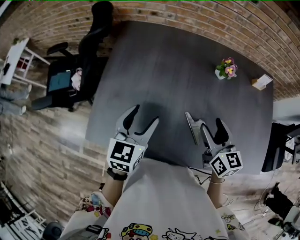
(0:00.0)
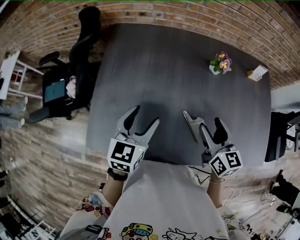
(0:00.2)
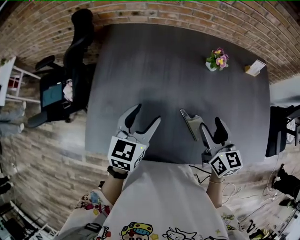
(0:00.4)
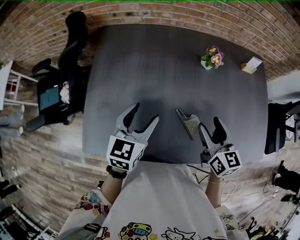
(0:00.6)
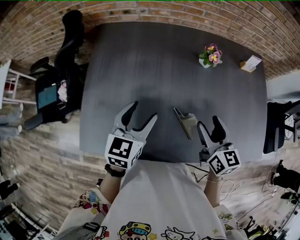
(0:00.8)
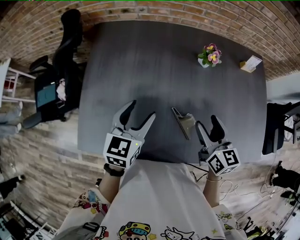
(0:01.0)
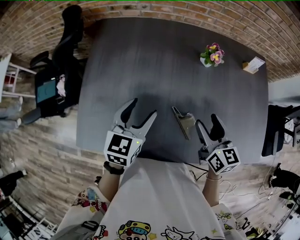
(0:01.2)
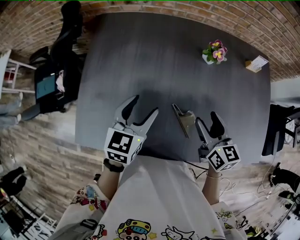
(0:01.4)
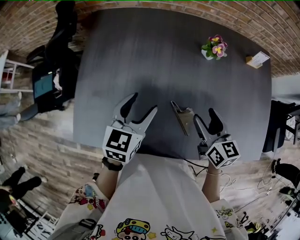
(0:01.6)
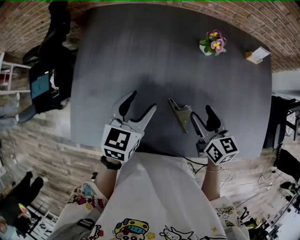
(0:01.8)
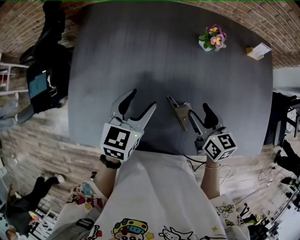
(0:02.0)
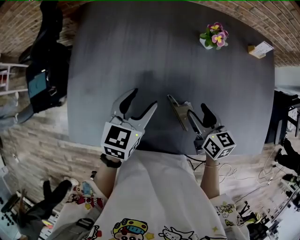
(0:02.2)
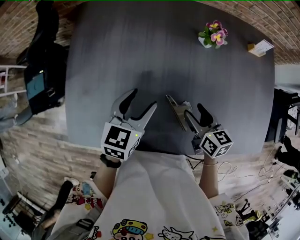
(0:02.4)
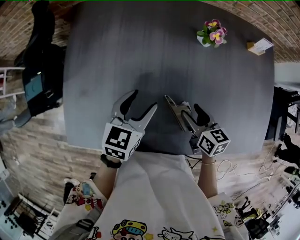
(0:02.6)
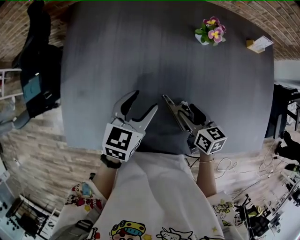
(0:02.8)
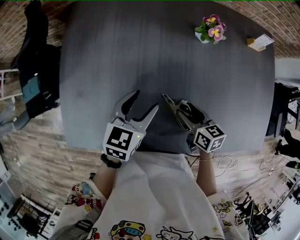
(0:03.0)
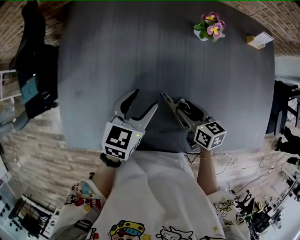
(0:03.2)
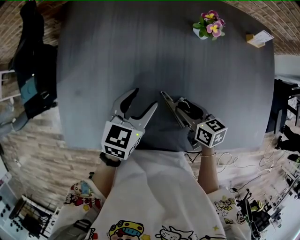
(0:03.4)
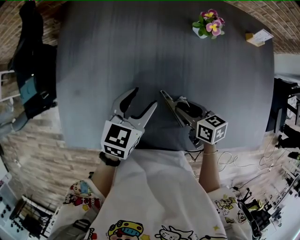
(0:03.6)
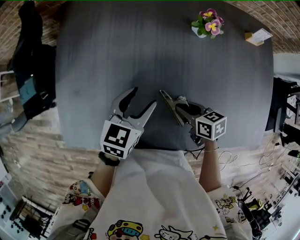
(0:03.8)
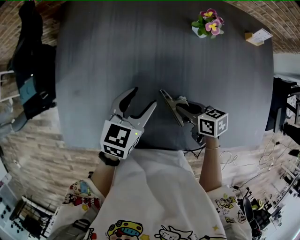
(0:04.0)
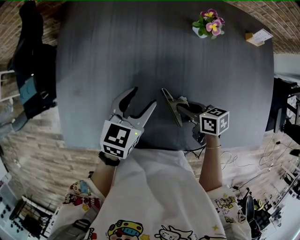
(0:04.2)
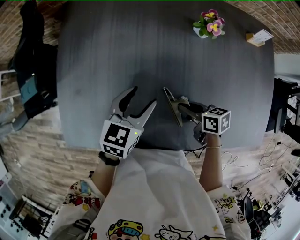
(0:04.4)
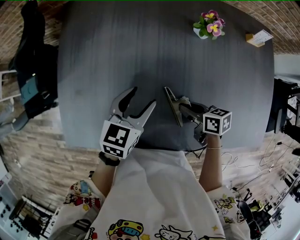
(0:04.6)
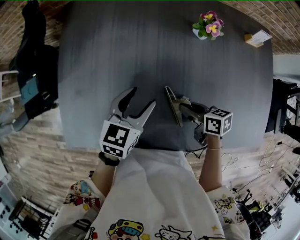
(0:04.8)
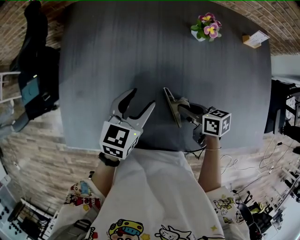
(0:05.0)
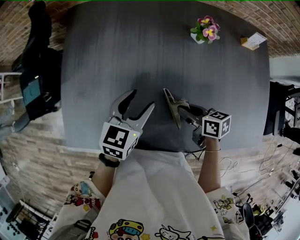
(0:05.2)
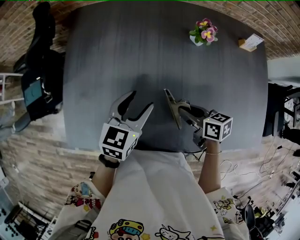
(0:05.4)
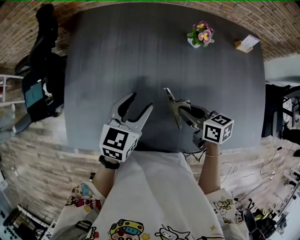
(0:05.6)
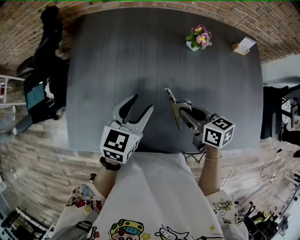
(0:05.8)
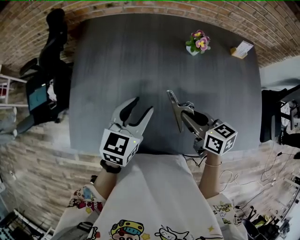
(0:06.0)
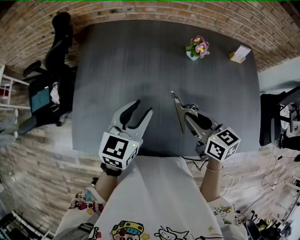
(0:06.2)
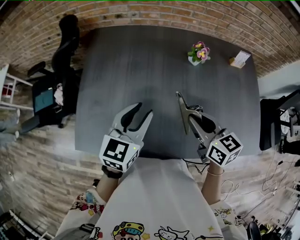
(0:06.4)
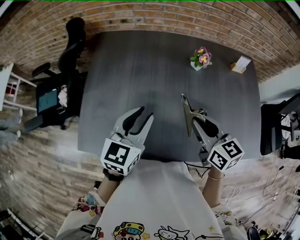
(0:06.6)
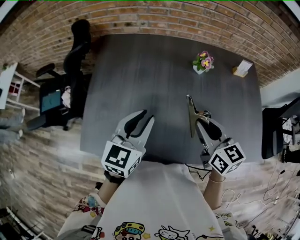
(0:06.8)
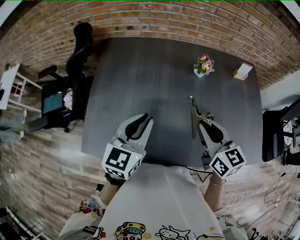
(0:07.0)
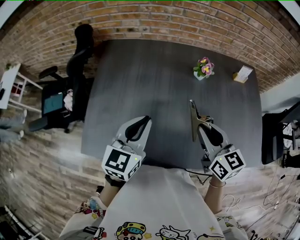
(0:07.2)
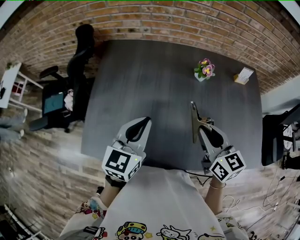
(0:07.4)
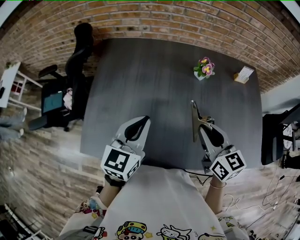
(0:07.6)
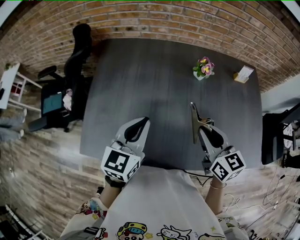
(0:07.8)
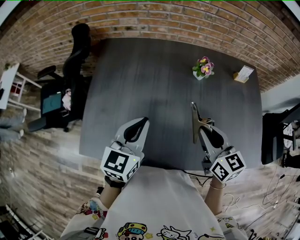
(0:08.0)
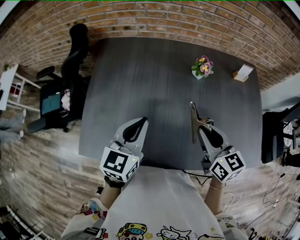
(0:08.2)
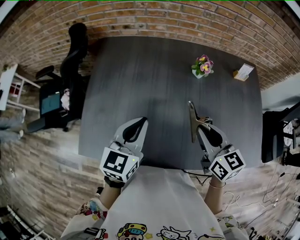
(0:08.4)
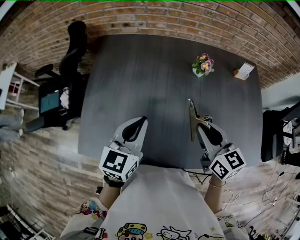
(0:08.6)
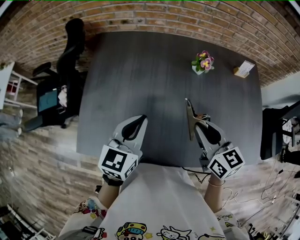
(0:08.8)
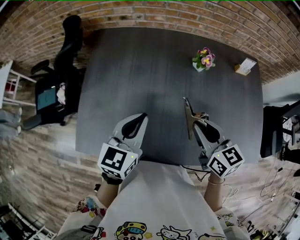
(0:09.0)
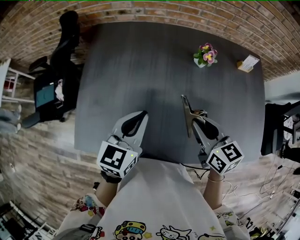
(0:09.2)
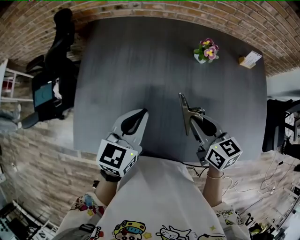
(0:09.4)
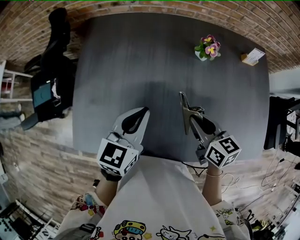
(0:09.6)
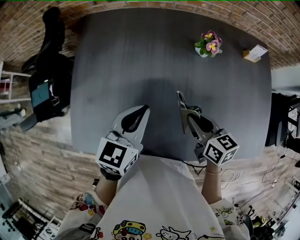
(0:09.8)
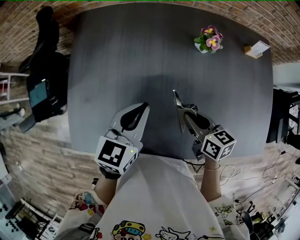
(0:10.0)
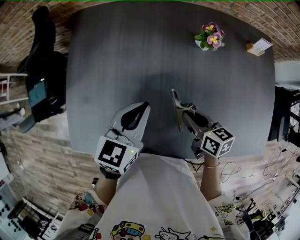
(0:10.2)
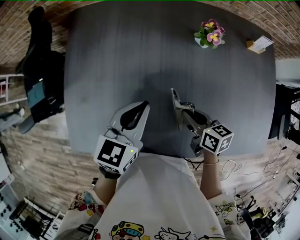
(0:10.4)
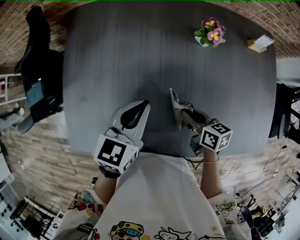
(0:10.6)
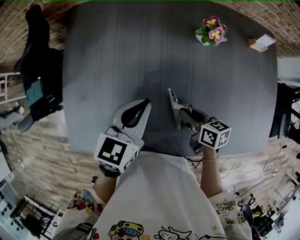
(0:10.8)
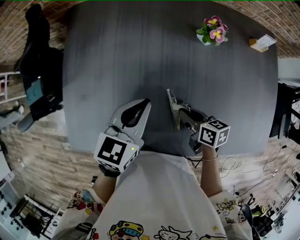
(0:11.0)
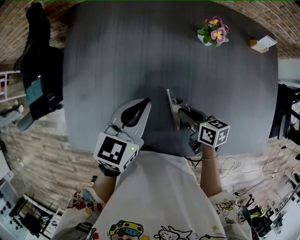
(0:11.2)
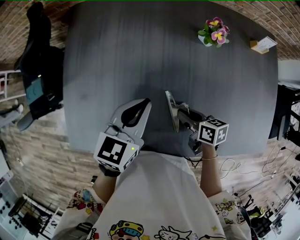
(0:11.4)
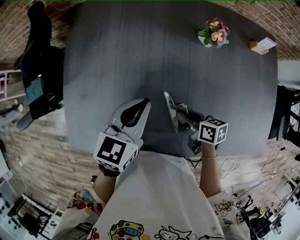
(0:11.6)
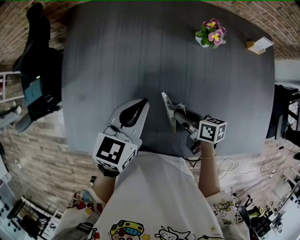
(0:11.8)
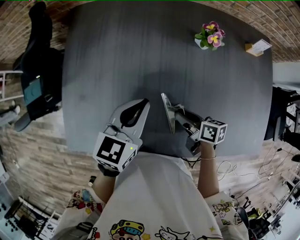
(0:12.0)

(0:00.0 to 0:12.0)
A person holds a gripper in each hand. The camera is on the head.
0:00.0 - 0:01.6: The right gripper ends up roughly 5 cm from where it was. The left gripper heads to the right, covering approximately 5 cm.
0:01.6 - 0:03.0: The right gripper travels downward by approximately 10 cm, and rotates approximately 20 degrees. The left gripper goes about 5 cm downward.
0:03.0 - 0:04.4: The right gripper changes its angle by approximately 20 degrees, and closes its fingers.
0:04.4 - 0:06.0: The left gripper is displaced upward by about 5 cm. Meanwhile the right gripper goes roughly 10 cm upward, and swivels roughly 20 degrees.
0:06.0 - 0:07.6: The grippers both shift upward by about 10 cm. The right gripper rotates approximately 20 degrees. Meanwhile the left gripper closes up.
0:07.6 - 0:09.0: The grippers make only small movements.
0:09.0 - 0:10.4: The right gripper travels downward by some 15 cm, and turns by roughly 30 degrees. The left gripper is displaced downward by about 5 cm.
0:10.4 - 0:12.0: The grippers stay close to where they were, moving slightly.

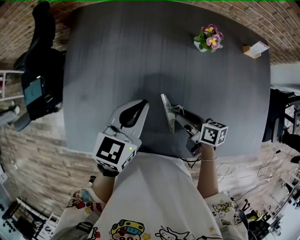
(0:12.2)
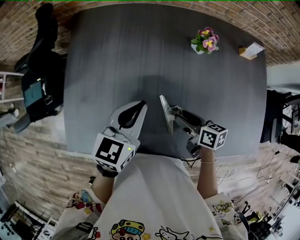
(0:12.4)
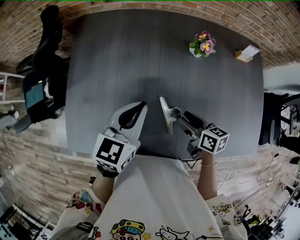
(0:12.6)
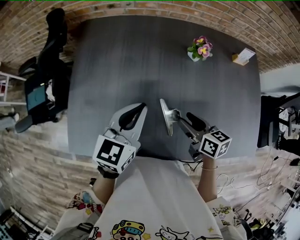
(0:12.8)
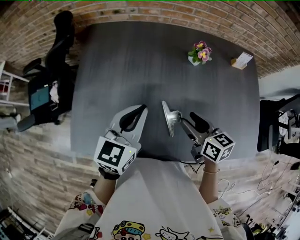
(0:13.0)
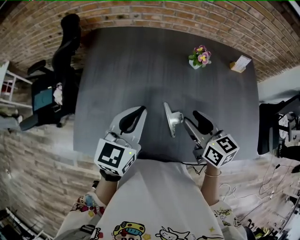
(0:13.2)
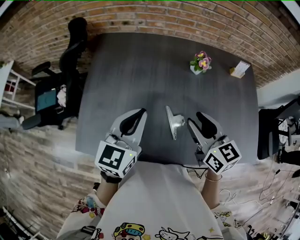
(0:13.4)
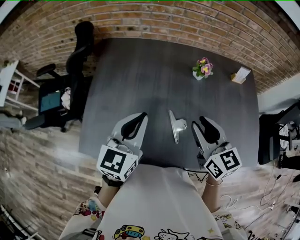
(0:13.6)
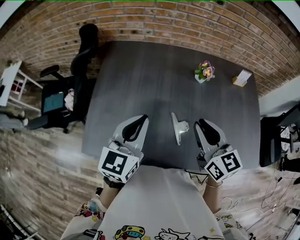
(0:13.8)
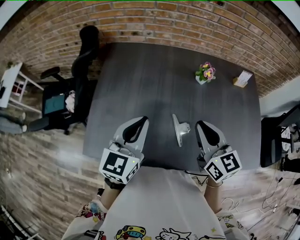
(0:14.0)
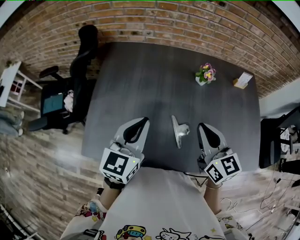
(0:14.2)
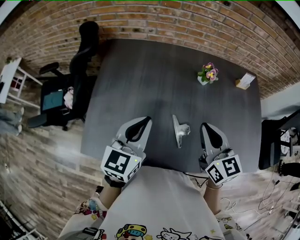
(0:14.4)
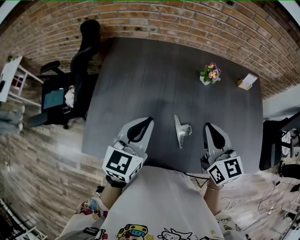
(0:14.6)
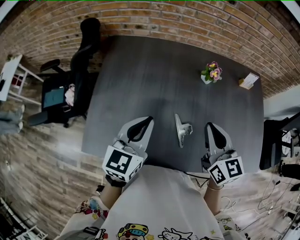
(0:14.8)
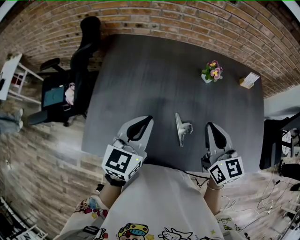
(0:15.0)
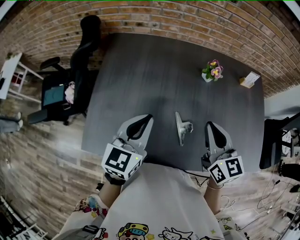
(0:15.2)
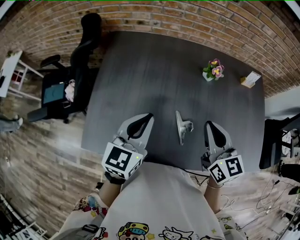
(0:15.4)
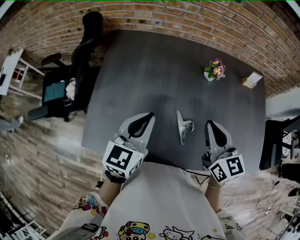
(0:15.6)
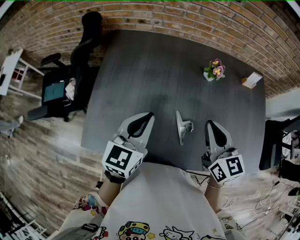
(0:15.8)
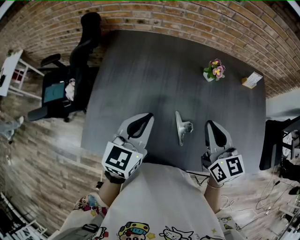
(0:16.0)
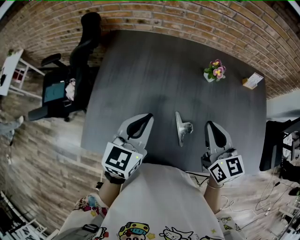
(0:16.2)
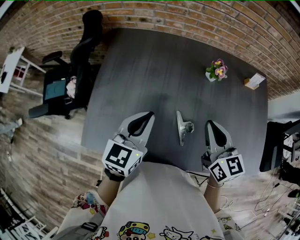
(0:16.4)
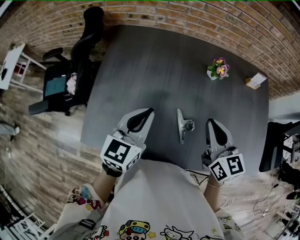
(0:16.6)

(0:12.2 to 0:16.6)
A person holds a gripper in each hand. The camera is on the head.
0:12.2 - 0:13.6: The left gripper moves upward, backward and to the left, roughly 15 cm; the right gripper is displaced upward by roughly 25 cm, and twists about 50 degrees counterclockwise, seen from behind.
0:13.6 - 0:15.2: The right gripper closes.
0:15.2 - 0:16.6: The grippers make only small movements.

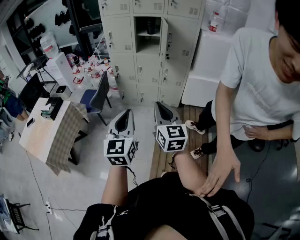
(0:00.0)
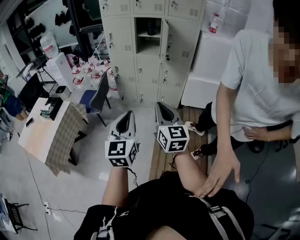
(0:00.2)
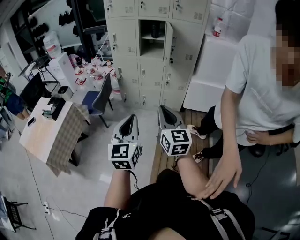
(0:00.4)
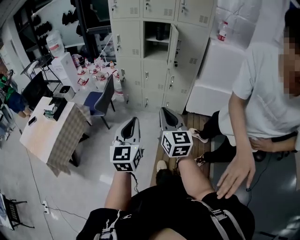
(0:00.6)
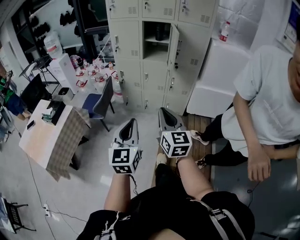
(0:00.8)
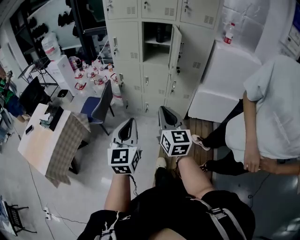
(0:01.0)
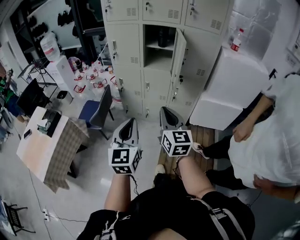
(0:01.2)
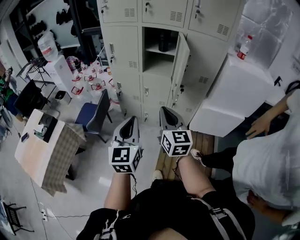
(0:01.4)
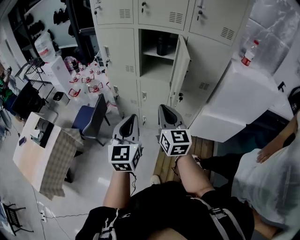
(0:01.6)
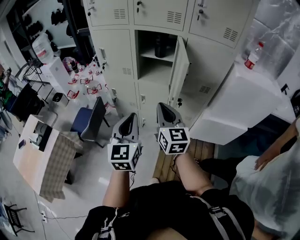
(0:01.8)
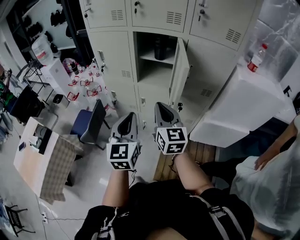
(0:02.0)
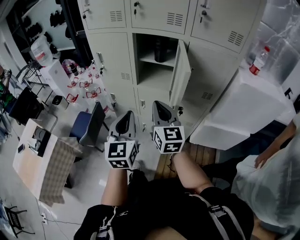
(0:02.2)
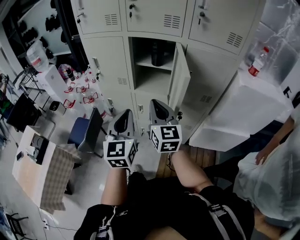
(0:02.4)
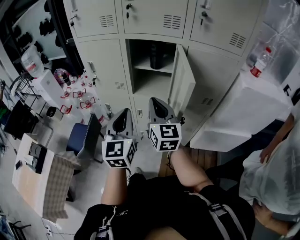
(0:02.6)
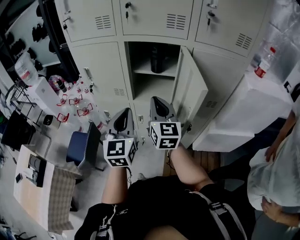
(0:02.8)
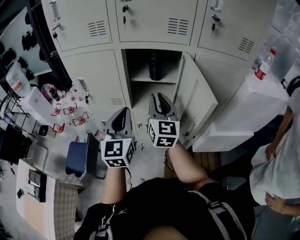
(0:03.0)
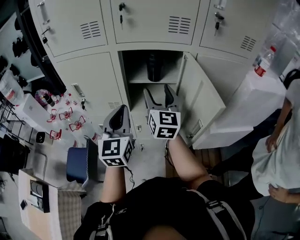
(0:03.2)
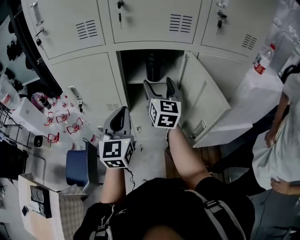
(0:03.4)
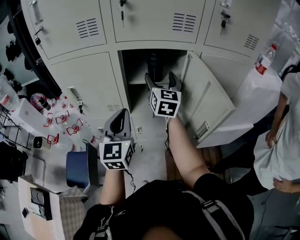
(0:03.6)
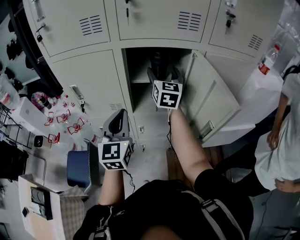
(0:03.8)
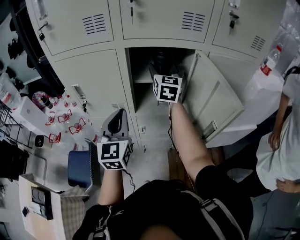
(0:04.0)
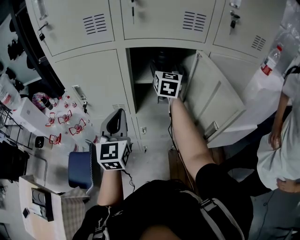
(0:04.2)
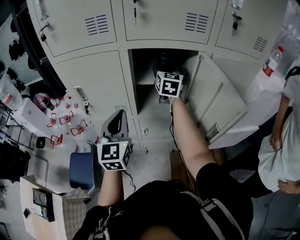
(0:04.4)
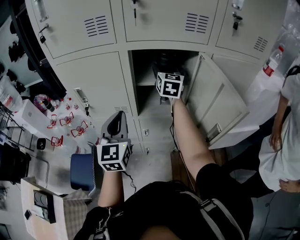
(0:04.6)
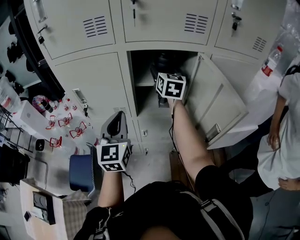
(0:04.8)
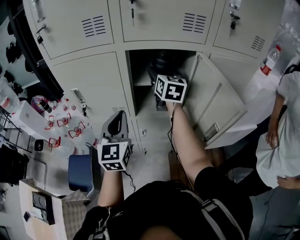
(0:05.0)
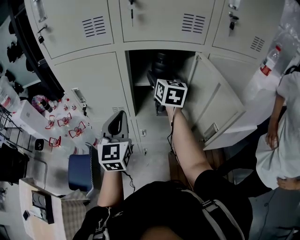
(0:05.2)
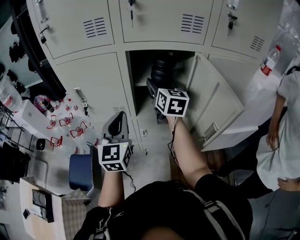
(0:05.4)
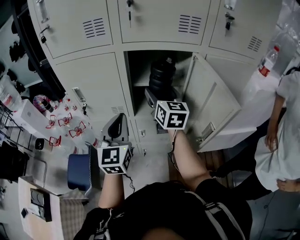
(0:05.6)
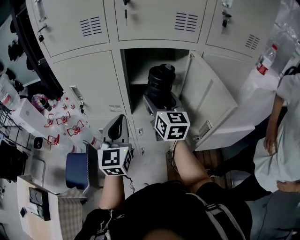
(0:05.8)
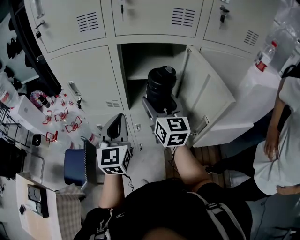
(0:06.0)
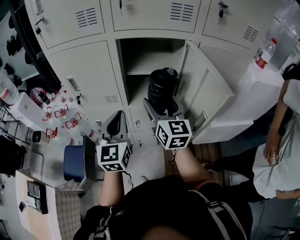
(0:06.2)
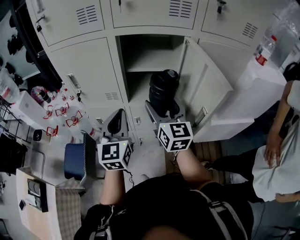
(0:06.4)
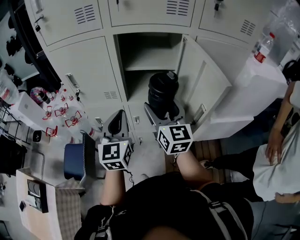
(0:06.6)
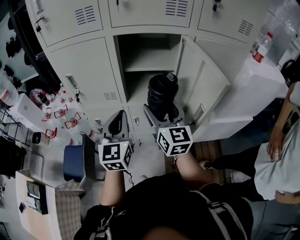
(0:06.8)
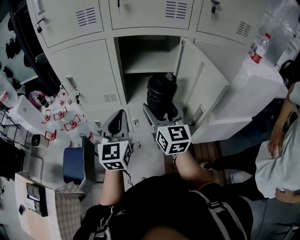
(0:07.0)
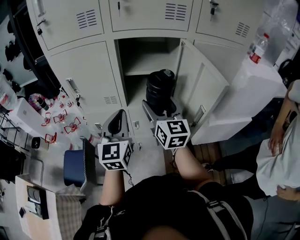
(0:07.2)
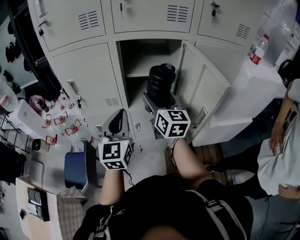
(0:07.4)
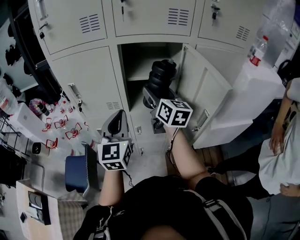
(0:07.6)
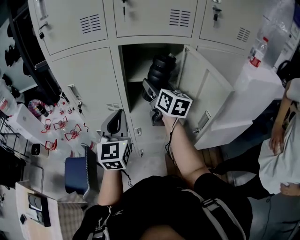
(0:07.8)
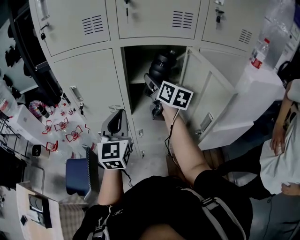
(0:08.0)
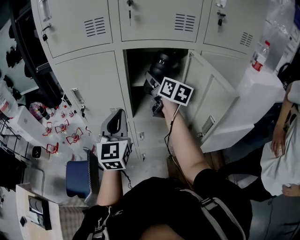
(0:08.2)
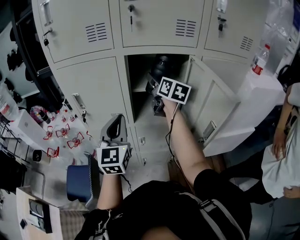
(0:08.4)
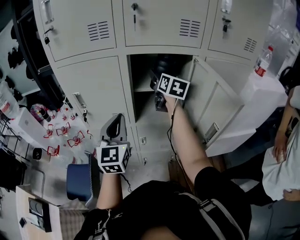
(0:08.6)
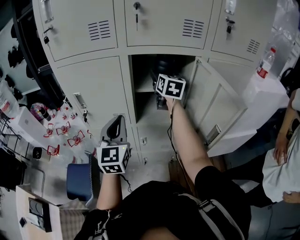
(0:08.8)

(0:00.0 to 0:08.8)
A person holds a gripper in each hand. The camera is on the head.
0:00.0 - 0:01.4: The two grippers go about 35 cm forward.
0:01.4 - 0:03.0: The pair of grippers is taken forward, approximately 40 cm.
0:03.0 - 0:04.4: The left gripper is displaced to the left and forward by roughly 10 cm. The right gripper goes roughly 25 cm forward, and opens.
0:04.4 - 0:05.8: The right gripper goes approximately 15 cm backward.
0:07.4 - 0:08.8: The left gripper travels forward and to the left by roughly 10 cm; the right gripper travels forward by approximately 20 cm.
